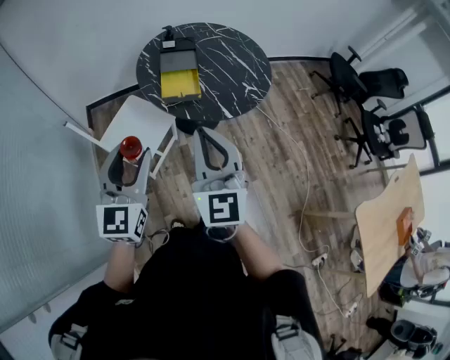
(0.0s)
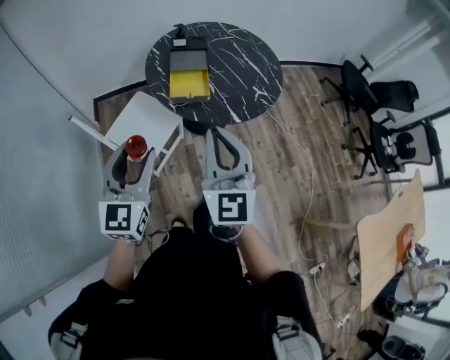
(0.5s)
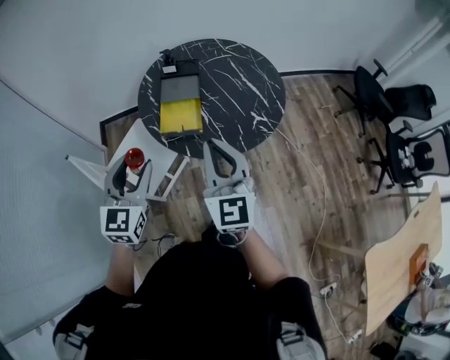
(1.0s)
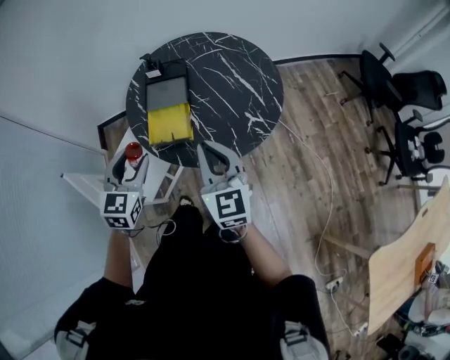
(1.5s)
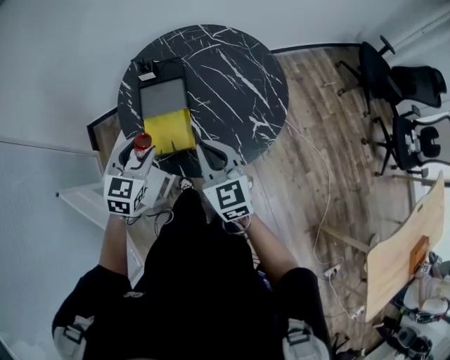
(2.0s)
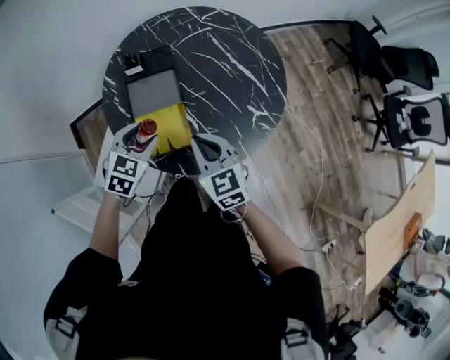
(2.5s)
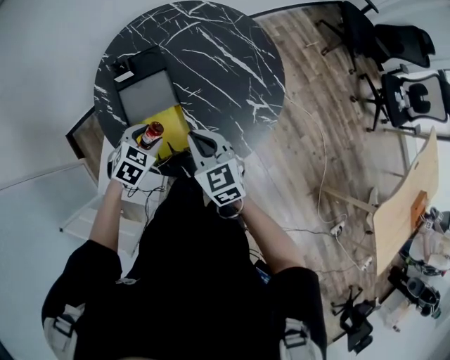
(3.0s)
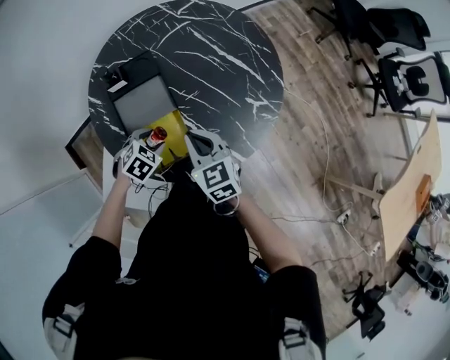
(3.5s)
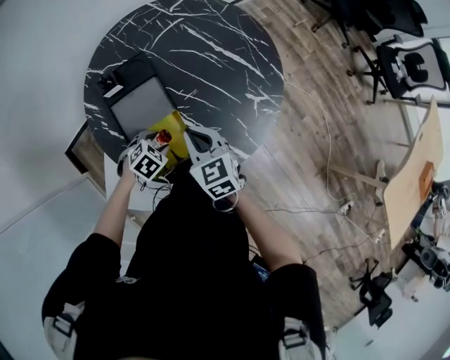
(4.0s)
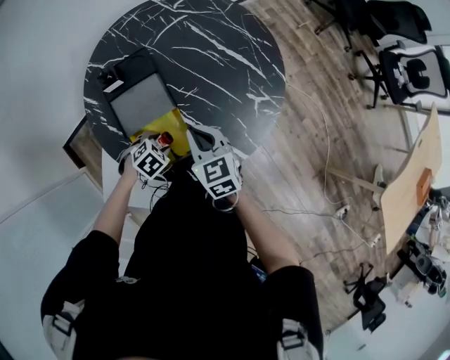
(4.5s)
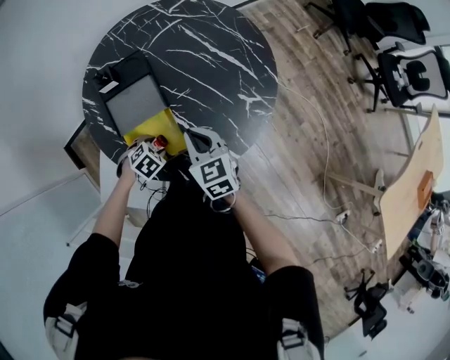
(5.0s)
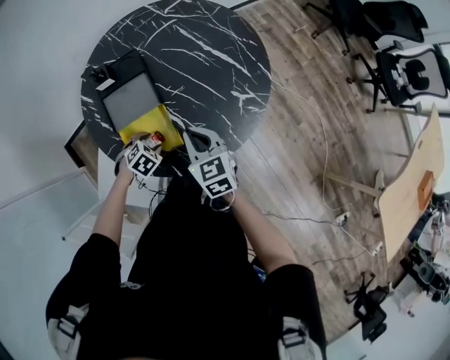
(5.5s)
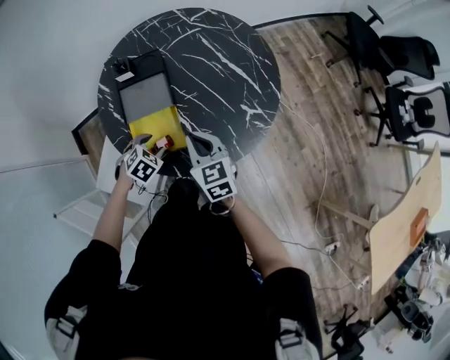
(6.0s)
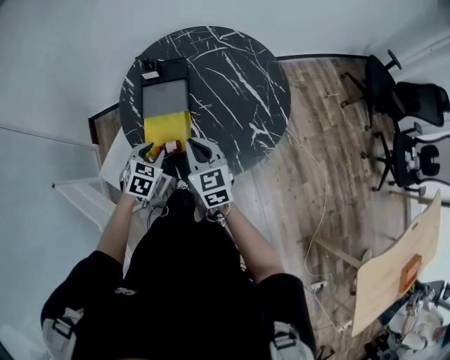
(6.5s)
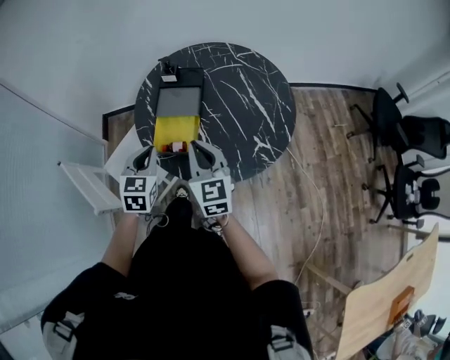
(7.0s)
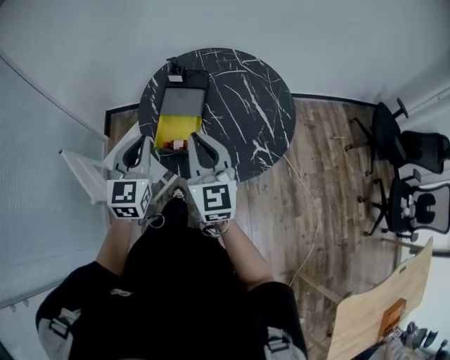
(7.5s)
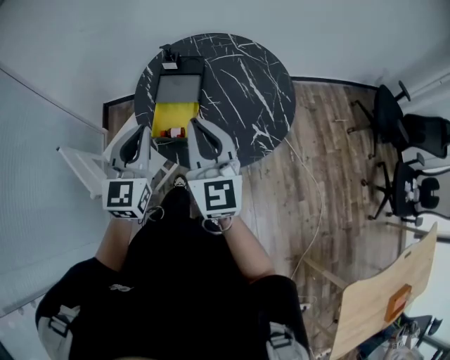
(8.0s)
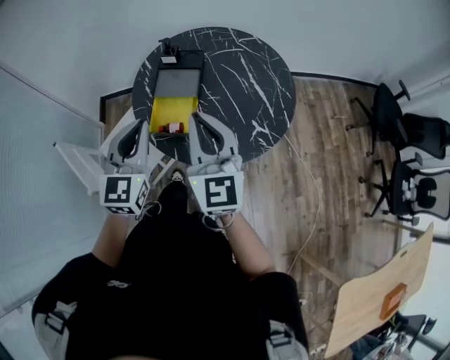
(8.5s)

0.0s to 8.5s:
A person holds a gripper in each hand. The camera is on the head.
0.0s to 2.0s: Both grippers travel together forward and downward, approximately 40 cm. The left gripper changes its angle by about 30 degrees; the right gripper changes its angle by some 30 degrees.
2.0s to 4.0s: The right gripper is displaced downward by roughly 15 cm, and changes its angle by approximately 20 degrees. Meanwhile the left gripper goes roughly 25 cm downward, and points its fingers some 40 degrees further downward.
4.0s to 6.5s: The left gripper goes some 15 cm upward, and changes its angle by roughly 50 degrees; the right gripper ends up about 10 cm from where it was.
6.5s to 8.5s: Both grippers move upward, about 20 cm. The right gripper changes its angle by some 20 degrees; the left gripper angles its fingers upward, by approximately 40 degrees, and closes its fingers.

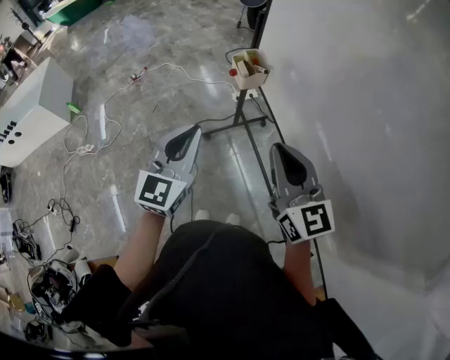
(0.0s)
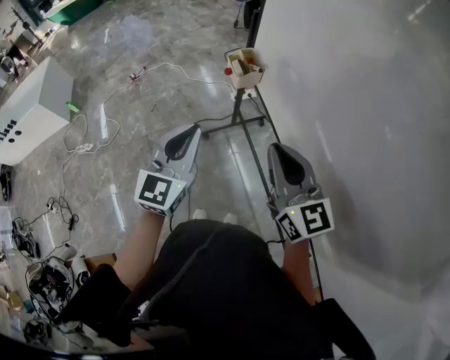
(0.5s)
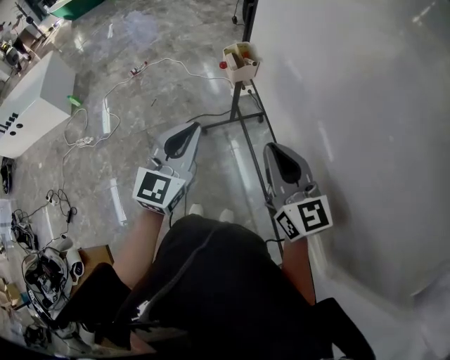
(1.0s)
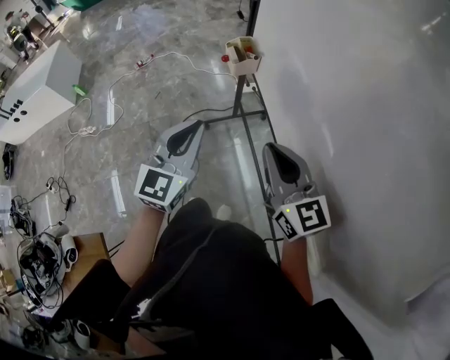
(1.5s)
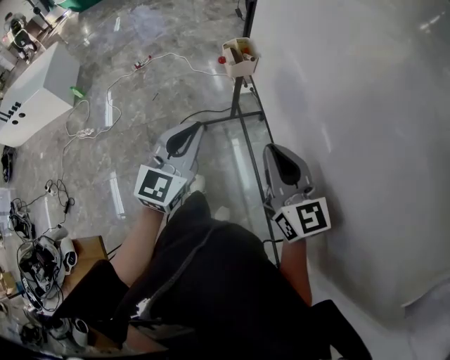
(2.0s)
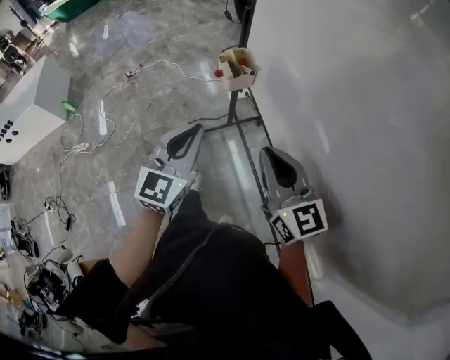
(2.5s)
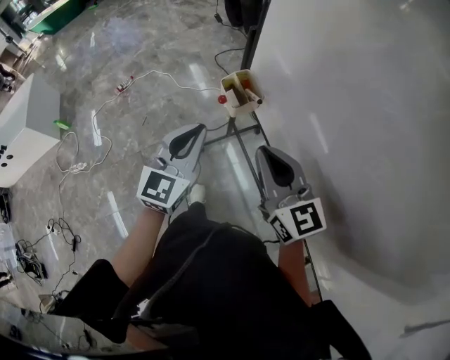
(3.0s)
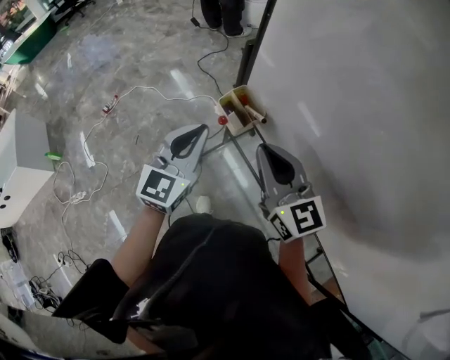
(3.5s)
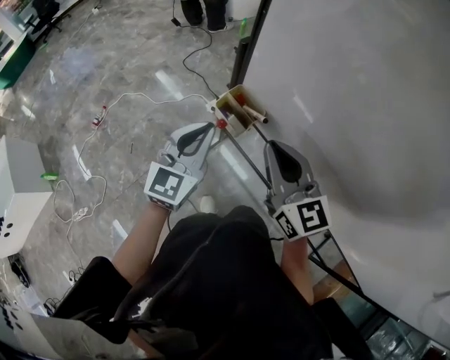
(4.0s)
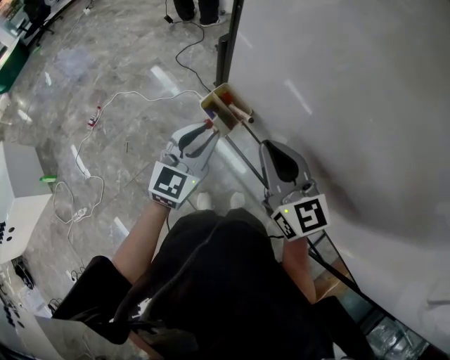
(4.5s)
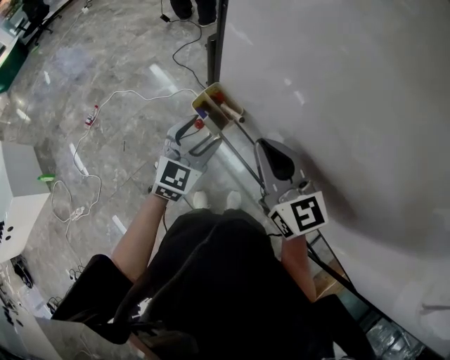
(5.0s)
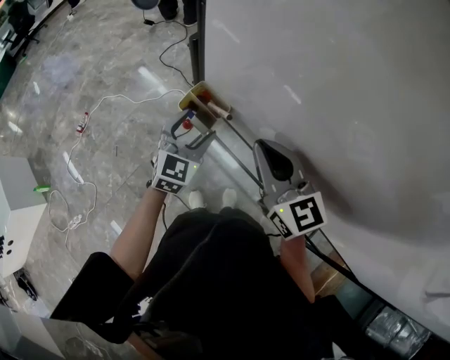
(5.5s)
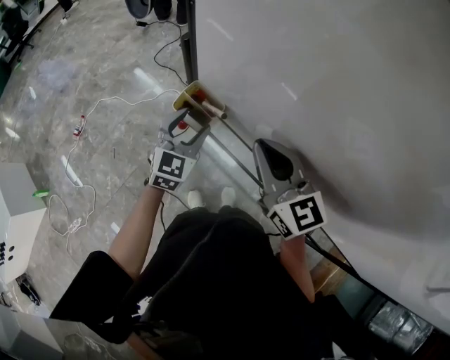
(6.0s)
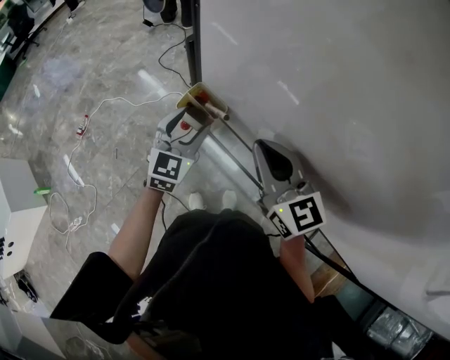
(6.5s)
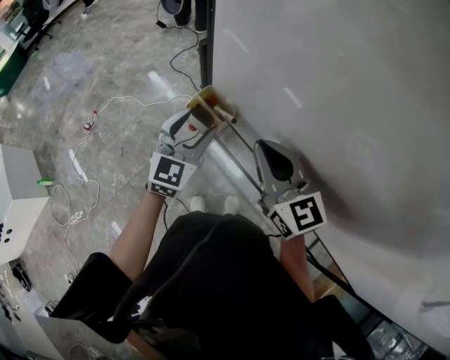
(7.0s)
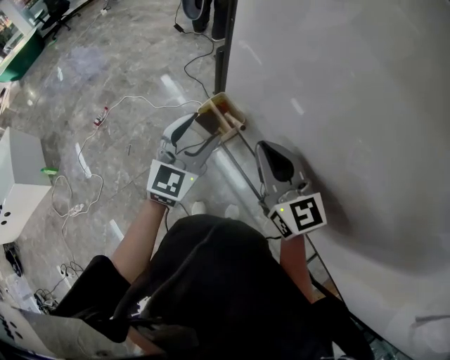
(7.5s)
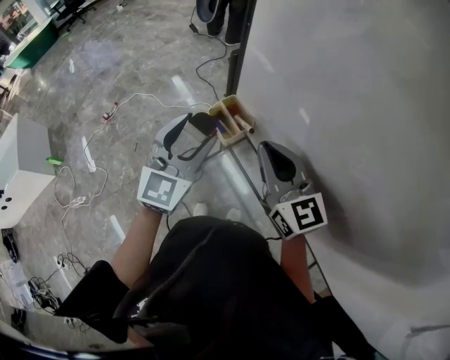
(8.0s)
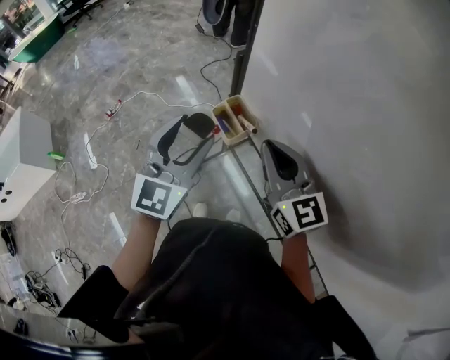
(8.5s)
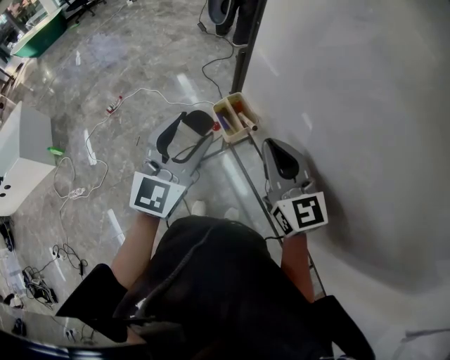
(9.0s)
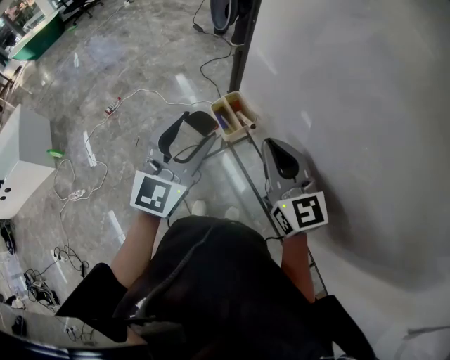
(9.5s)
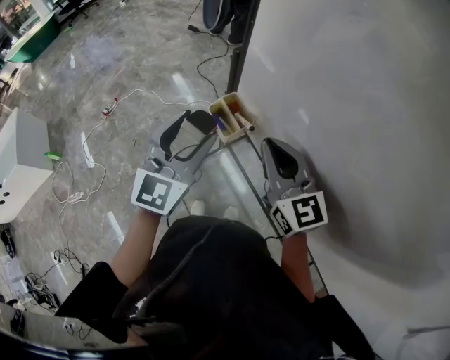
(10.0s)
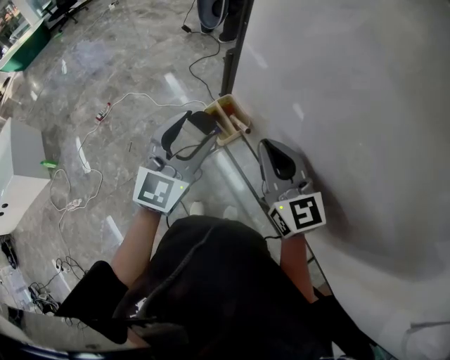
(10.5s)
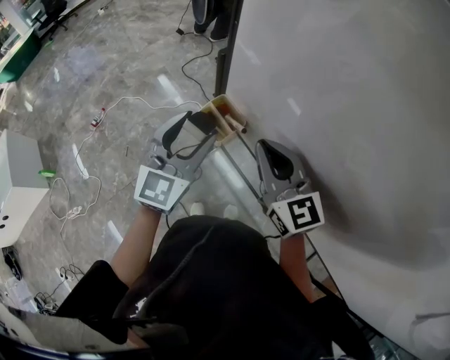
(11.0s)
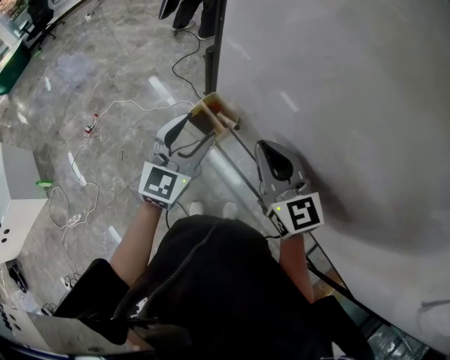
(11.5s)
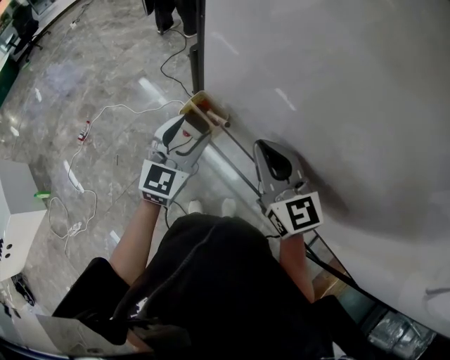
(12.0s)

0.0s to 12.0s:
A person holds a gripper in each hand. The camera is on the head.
0.0s to 2.0s: The two grippers go roughly 5 cm to the right.
2.0s to 4.0s: The left gripper changes place by about 30 cm, and rotates about 30 degrees. The right gripper moves some 25 cm, and turns by roughly 20 degrees.
4.0s to 6.0s: The right gripper shifts roughly 5 cm to the right. Meanwhile the left gripper heads downward, to the right and forward, covering about 15 cm, and opens.
6.0s to 8.0s: The right gripper changes place by roughly 5 cm, while the left gripper shifts about 15 cm upward and backward, and swivels some 20 degrees.
8.0s to 10.0s: There are only small adjustments of the grippers.
10.0s to 12.0s: The left gripper shifts about 10 cm downward.

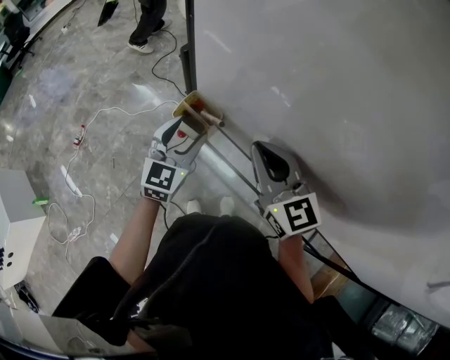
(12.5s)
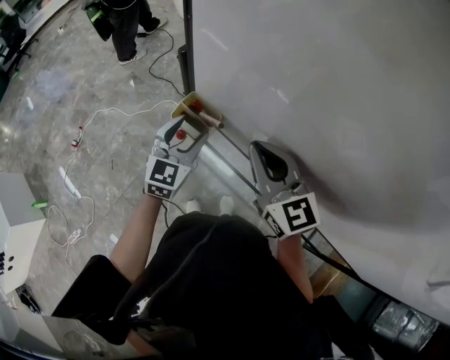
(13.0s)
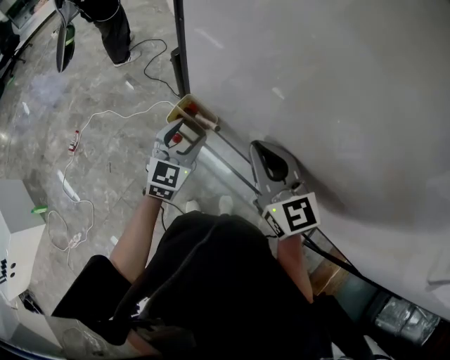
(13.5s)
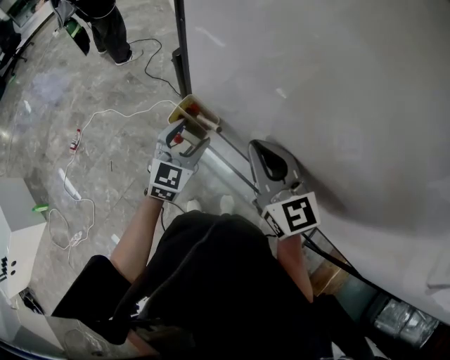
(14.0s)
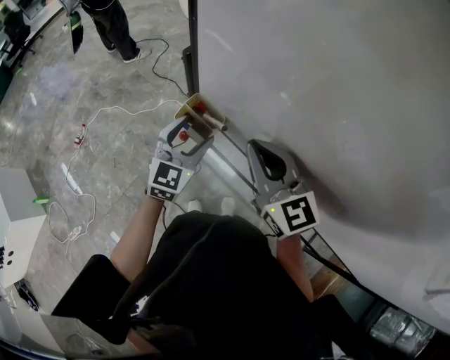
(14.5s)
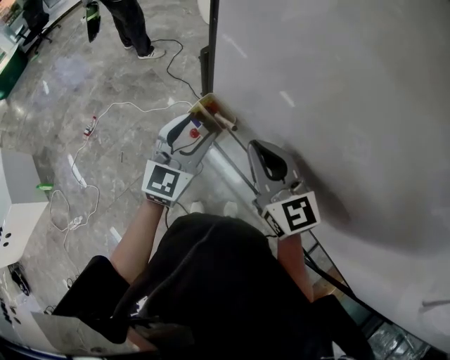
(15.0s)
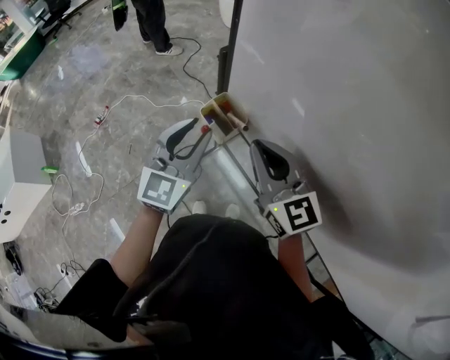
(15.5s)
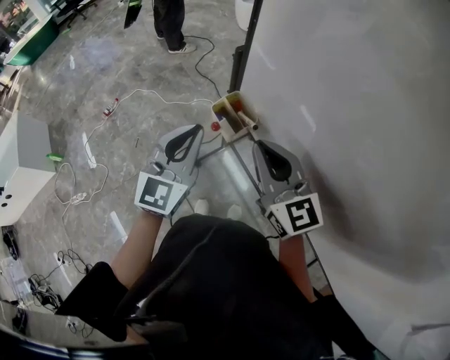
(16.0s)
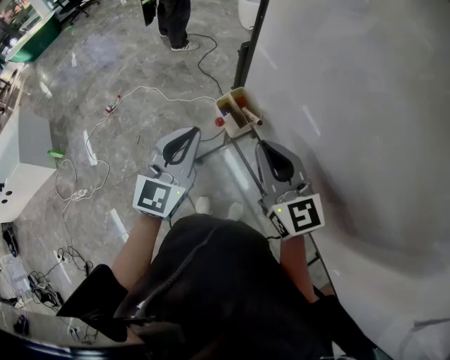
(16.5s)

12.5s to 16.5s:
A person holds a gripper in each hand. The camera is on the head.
12.5s to 14.5s: There are only small adjustments of the grippers.
14.5s to 16.5s: The right gripper goes roughly 5 cm to the left, while the left gripper shifts approximately 15 cm upward, backward and to the left, changes its angle by about 20 degrees, and closes.

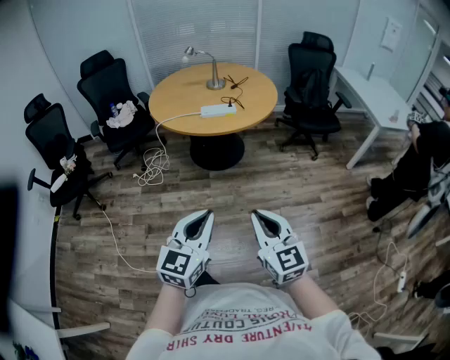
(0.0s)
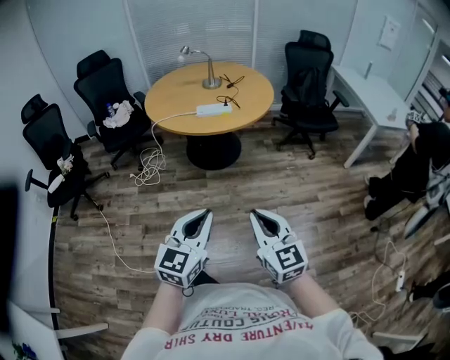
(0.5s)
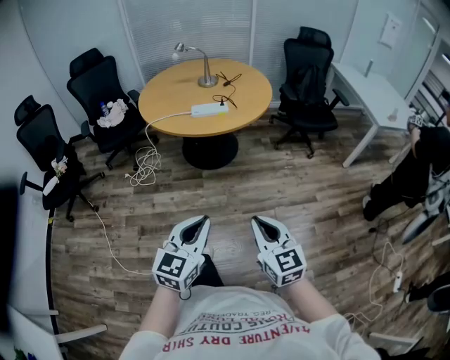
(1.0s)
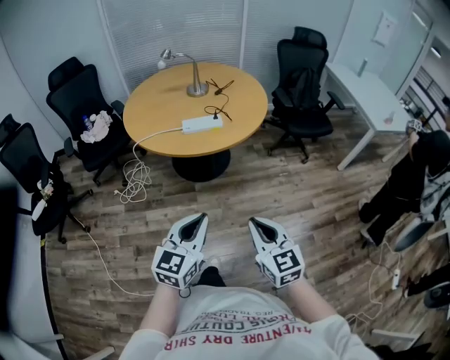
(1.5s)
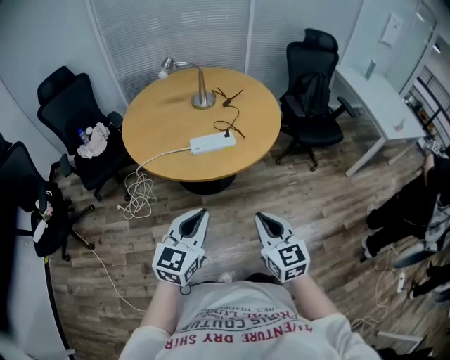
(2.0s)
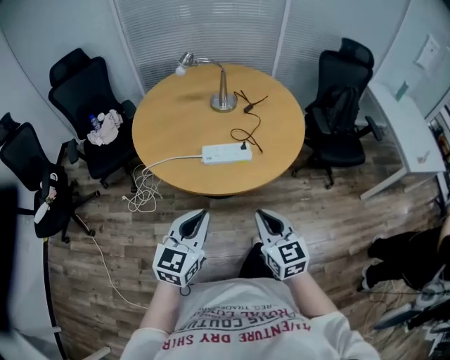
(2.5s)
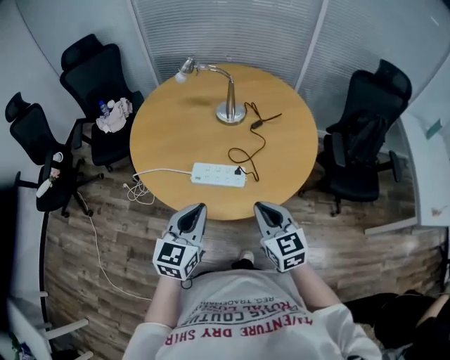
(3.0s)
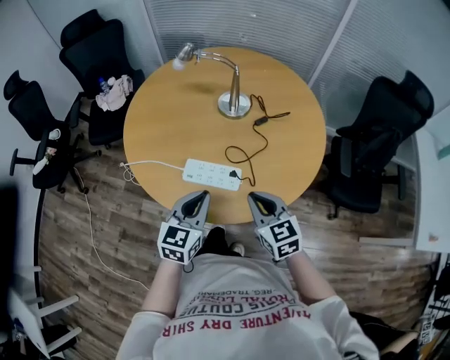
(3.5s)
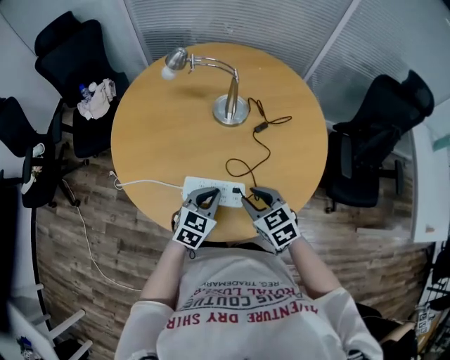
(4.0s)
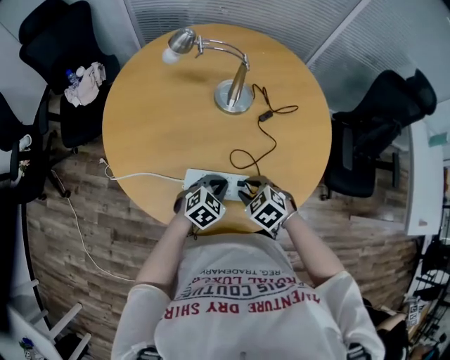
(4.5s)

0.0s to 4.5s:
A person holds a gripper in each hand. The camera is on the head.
0.0s to 2.0s: Both grippers travel together forward, some 35 cm.
2.0s to 4.5s: The pair of grippers is taken about 40 cm. The left gripper points its fingers about 40 degrees further downward. Meanwhile the right gripper tips its fingers downward by about 50 degrees, and opens its fingers.
